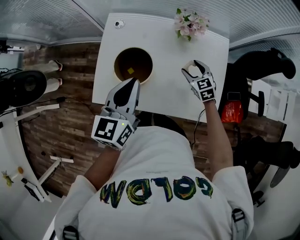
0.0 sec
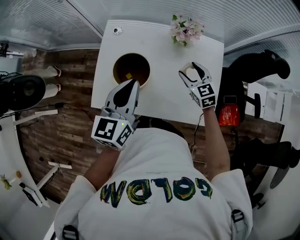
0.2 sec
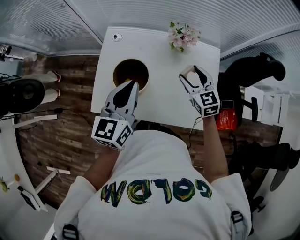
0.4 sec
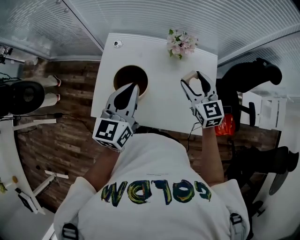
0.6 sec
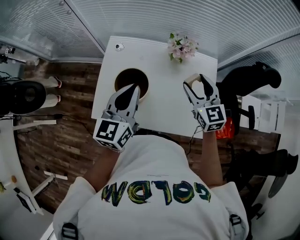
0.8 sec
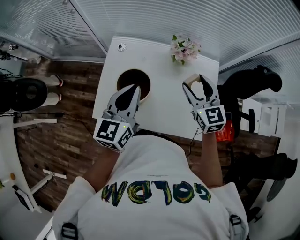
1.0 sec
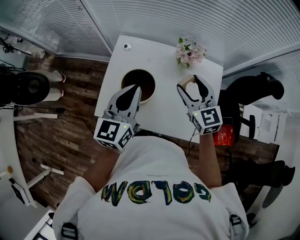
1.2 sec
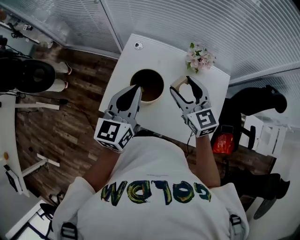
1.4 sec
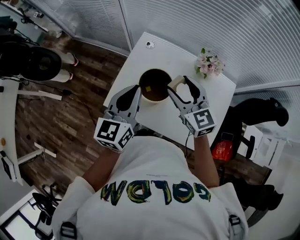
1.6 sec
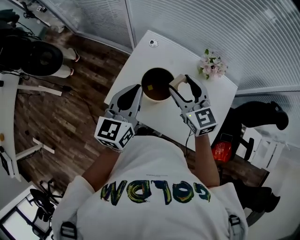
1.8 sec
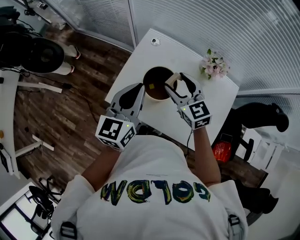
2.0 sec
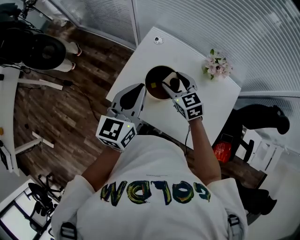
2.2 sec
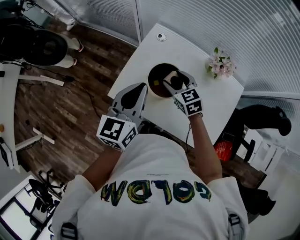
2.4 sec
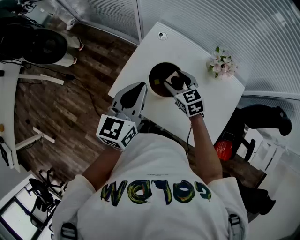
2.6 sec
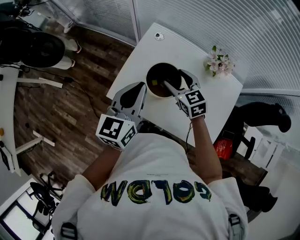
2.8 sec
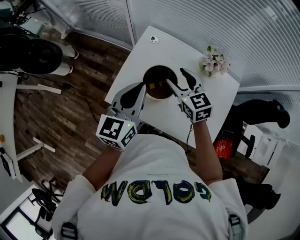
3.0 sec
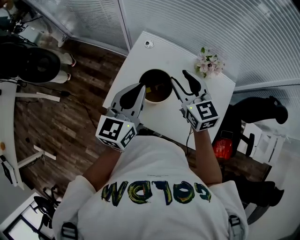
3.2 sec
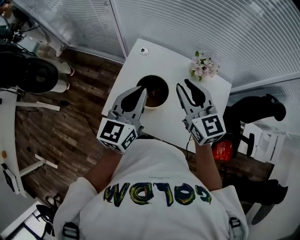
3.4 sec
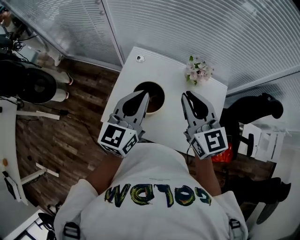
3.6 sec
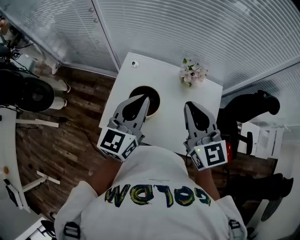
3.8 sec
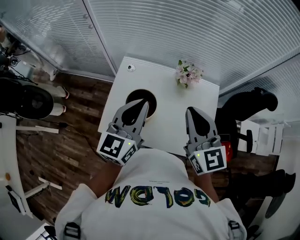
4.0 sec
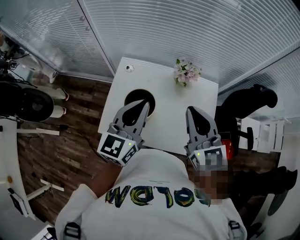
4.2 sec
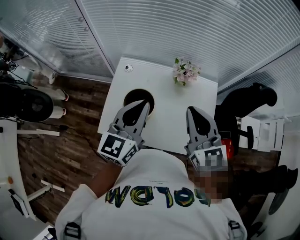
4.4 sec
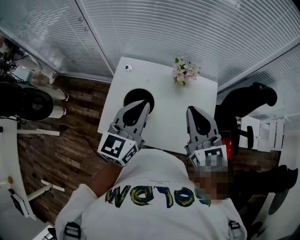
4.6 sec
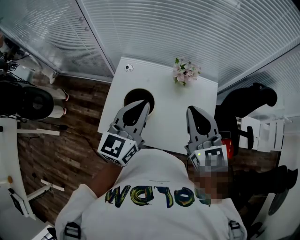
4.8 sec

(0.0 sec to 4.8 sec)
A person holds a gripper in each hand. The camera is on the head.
0.0 sec - 1.6 sec: The right gripper moves upward and to the left, about 30 cm, and rotates some 30 degrees; the left gripper shifts some 10 cm to the left and upward.
1.6 sec - 3.2 sec: The right gripper reaches approximately 15 cm downward, then returns.
3.2 sec - 4.8 sec: The left gripper is displaced to the right and upward by roughly 10 cm. Meanwhile the right gripper is displaced to the right, upward and backward by roughly 20 cm, turns by about 20 degrees, and closes up.

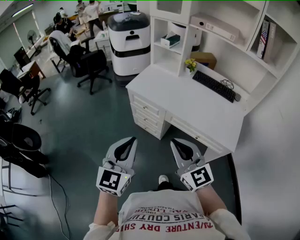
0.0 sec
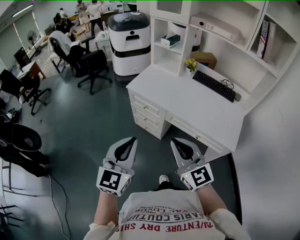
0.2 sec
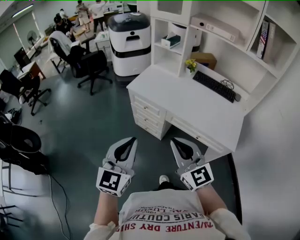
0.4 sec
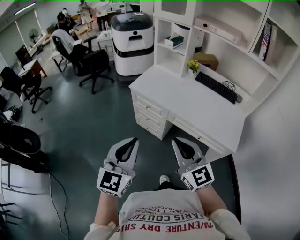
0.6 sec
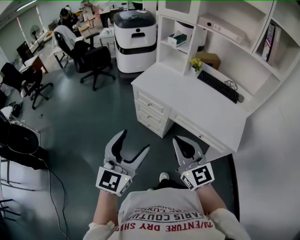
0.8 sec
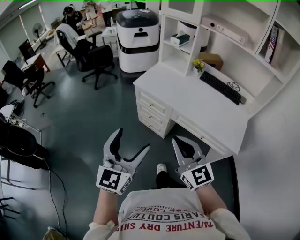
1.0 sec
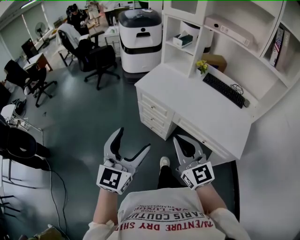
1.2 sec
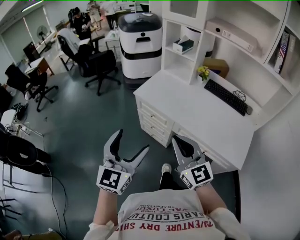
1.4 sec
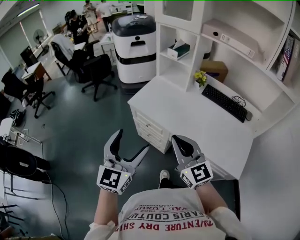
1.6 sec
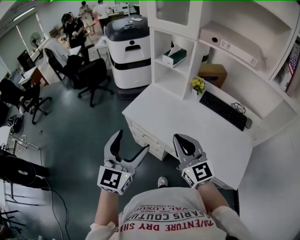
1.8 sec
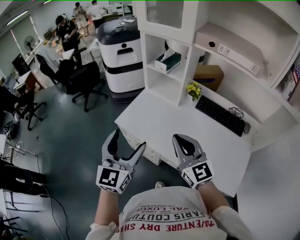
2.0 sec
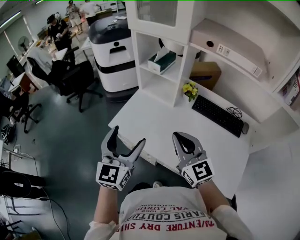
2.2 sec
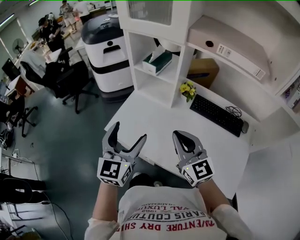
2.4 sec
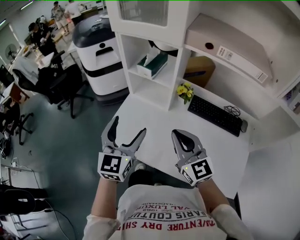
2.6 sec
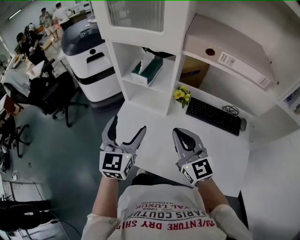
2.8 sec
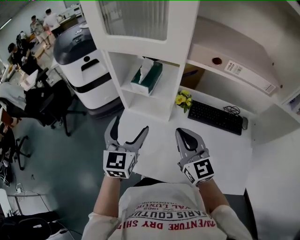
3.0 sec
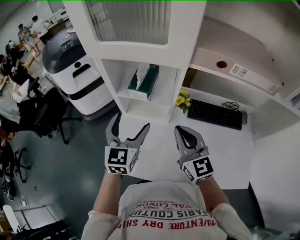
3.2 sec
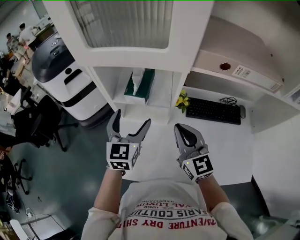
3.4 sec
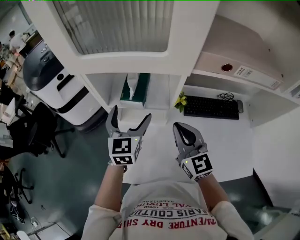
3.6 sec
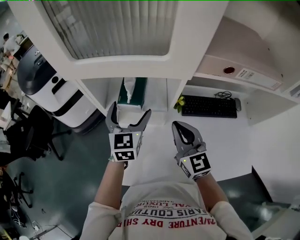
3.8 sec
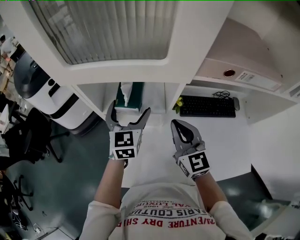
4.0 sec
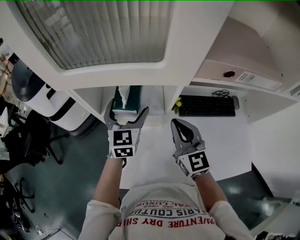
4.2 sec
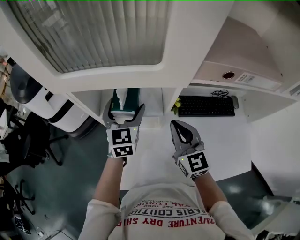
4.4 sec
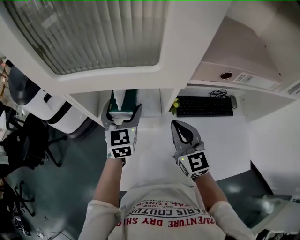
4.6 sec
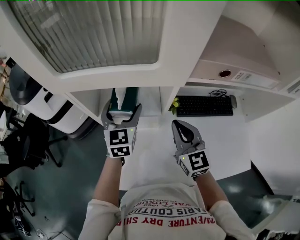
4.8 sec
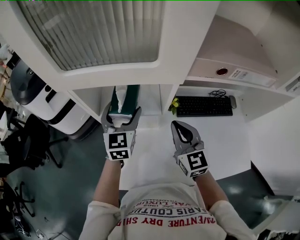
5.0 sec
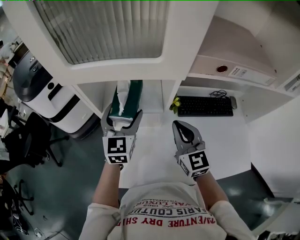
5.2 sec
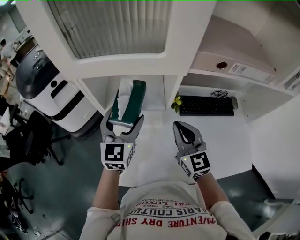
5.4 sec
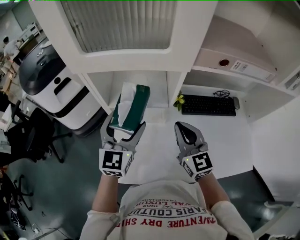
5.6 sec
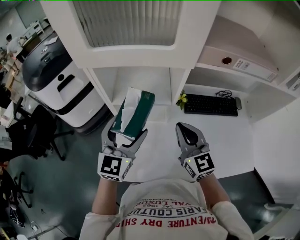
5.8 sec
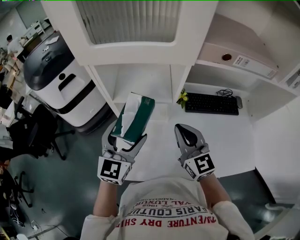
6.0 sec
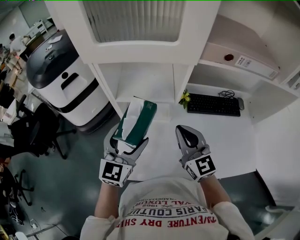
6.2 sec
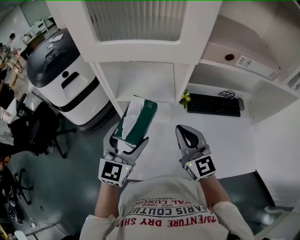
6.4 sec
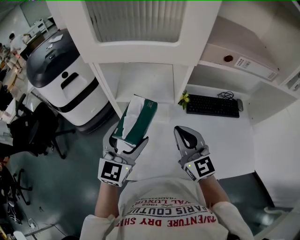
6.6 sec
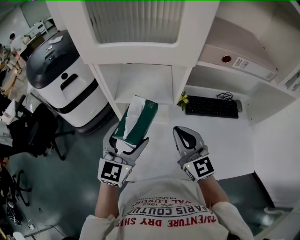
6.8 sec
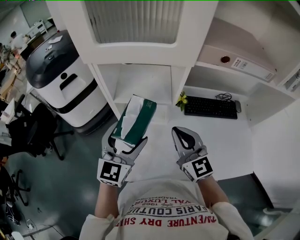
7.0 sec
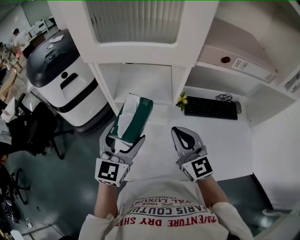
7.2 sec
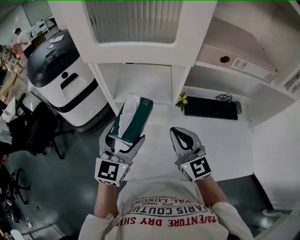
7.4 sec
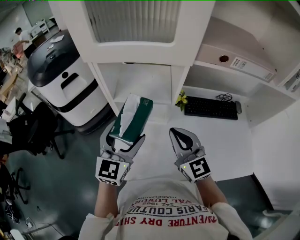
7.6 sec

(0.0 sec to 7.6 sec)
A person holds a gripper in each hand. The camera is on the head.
0.0 sec - 1.6 sec: Both grippers move forward, about 15 cm. The left gripper opens up.
1.6 sec - 3.0 sec: Both grippers travel together forward, approximately 40 cm. The right gripper swivels about 20 degrees.
3.0 sec - 4.6 sec: The right gripper is displaced forward by about 10 cm, and swivels roughly 20 degrees. The left gripper is displaced forward by some 20 cm.
4.6 sec - 6.0 sec: The left gripper shifts about 15 cm backward, while the right gripper goes about 10 cm backward.
6.0 sec - 7.6 sec: There are only small adjustments of the grippers.

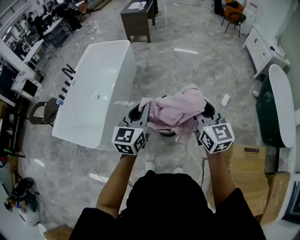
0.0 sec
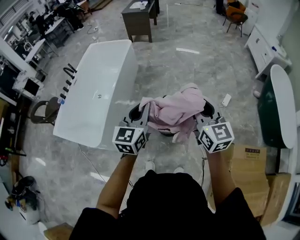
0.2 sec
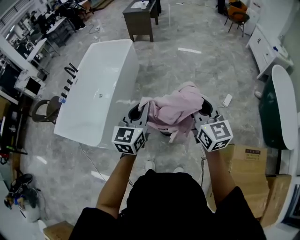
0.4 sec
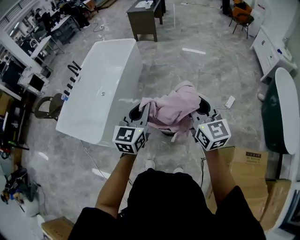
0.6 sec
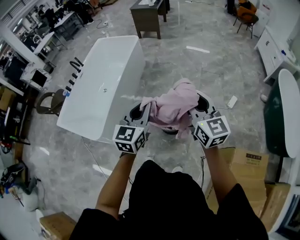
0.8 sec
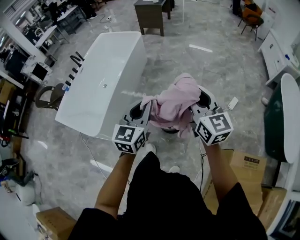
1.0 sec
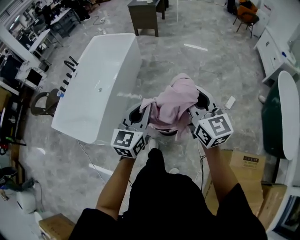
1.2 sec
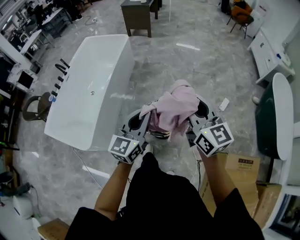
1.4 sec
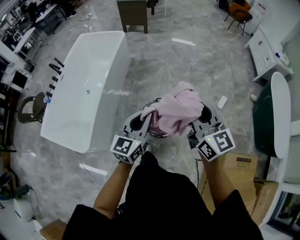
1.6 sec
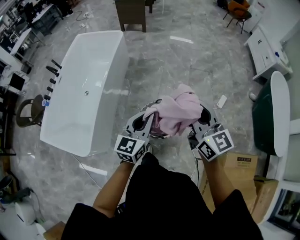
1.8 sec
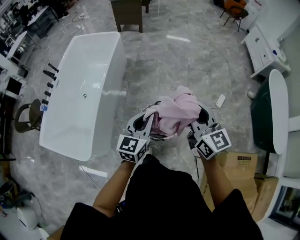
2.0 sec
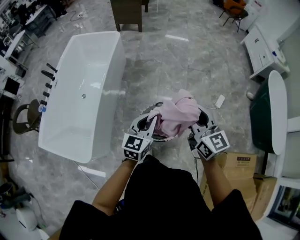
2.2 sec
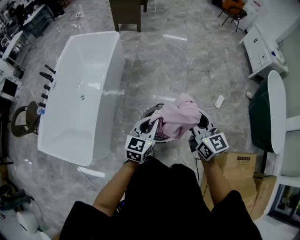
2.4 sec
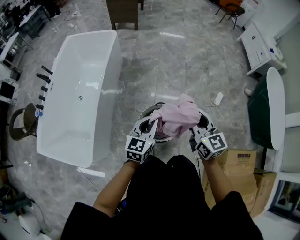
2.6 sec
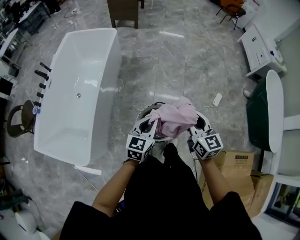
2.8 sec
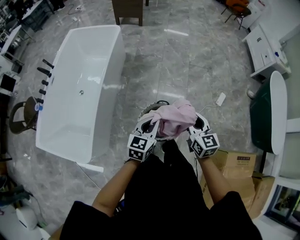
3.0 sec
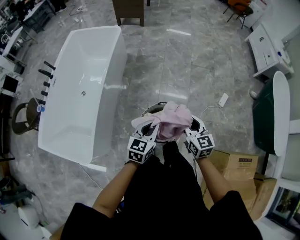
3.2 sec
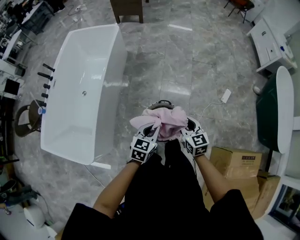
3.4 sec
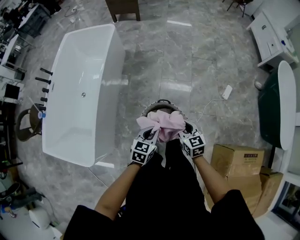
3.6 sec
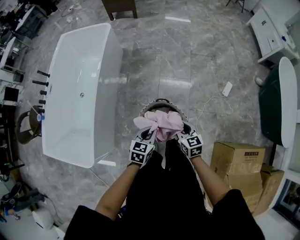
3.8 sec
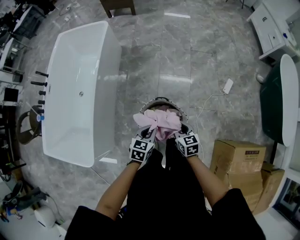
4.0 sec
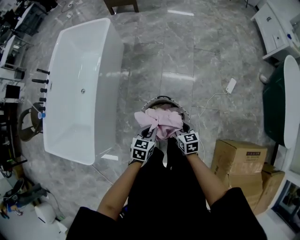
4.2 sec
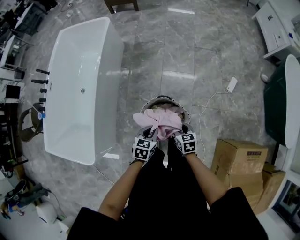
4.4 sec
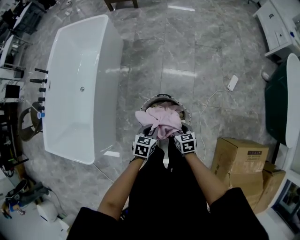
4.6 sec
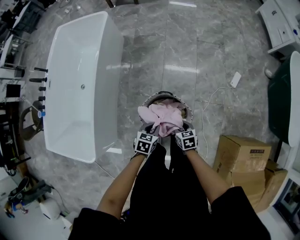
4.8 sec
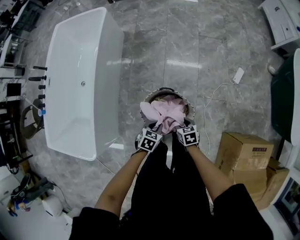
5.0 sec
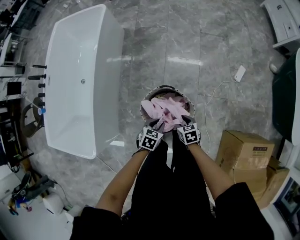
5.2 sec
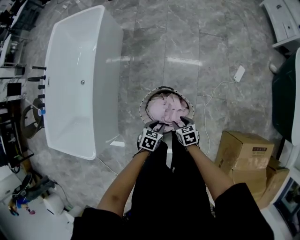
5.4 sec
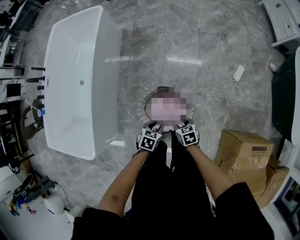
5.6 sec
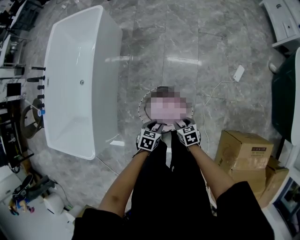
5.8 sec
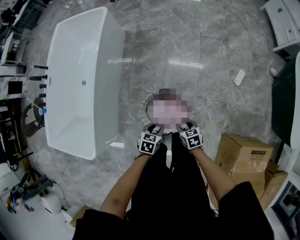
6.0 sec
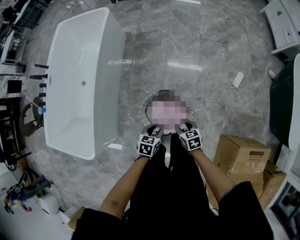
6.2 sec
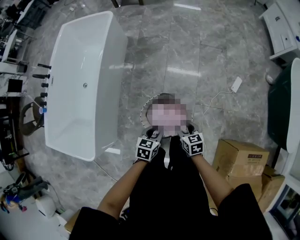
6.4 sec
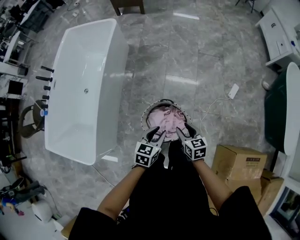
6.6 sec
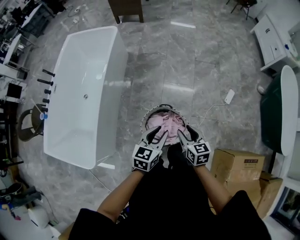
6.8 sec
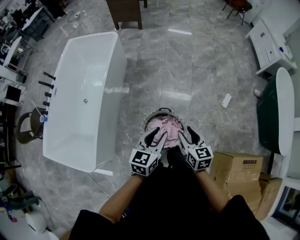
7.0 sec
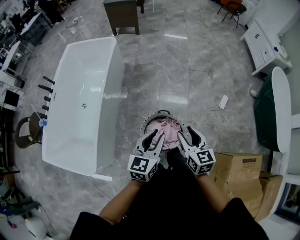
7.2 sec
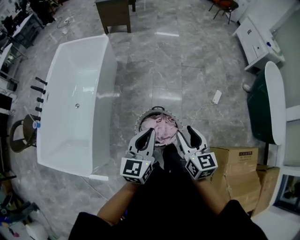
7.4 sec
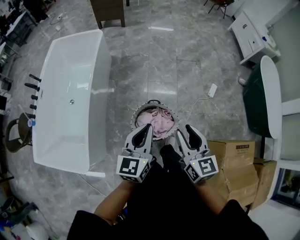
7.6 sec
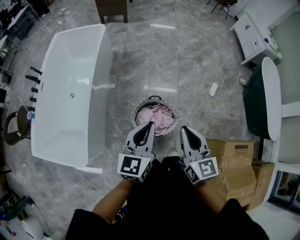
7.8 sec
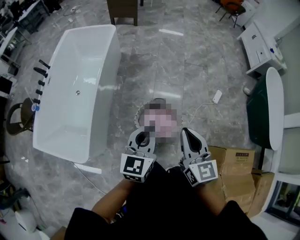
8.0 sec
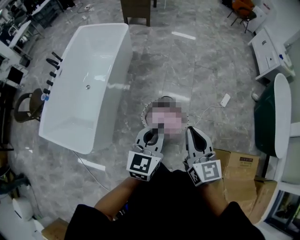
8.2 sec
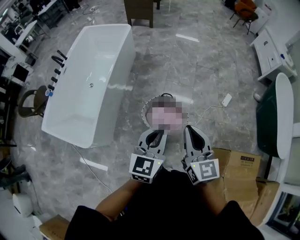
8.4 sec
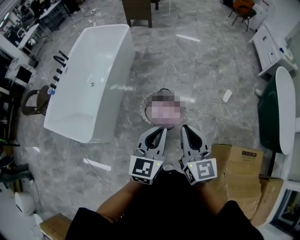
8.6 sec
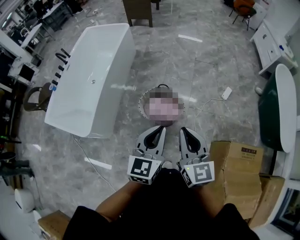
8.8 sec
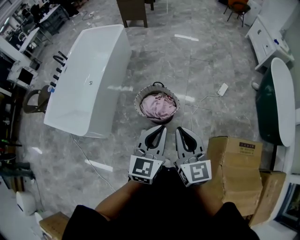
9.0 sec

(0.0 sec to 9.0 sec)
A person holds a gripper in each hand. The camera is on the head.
0.0 sec - 1.6 sec: The right gripper travels forward by approximately 15 cm. Meanwhile the left gripper goes about 15 cm forward and downward.
1.6 sec - 3.0 sec: The two grippers go approximately 20 cm downward and forward. The right gripper changes its angle by some 20 degrees.
3.0 sec - 4.4 sec: Both grippers move downward, roughly 20 cm. The left gripper changes its angle by about 30 degrees; the right gripper swivels roughly 30 degrees.
4.4 sec - 6.0 sec: Both grippers travel together downward, approximately 10 cm. The left gripper opens its fingers.
6.0 sec - 7.6 sec: Both grippers move upward, some 40 cm. The left gripper angles its fingers upward, by approximately 40 degrees, and closes, while the right gripper tips its fingers upward by roughly 40 degrees.
7.6 sec - 9.0 sec: The two grippers go some 35 cm backward and to the right. The right gripper closes.

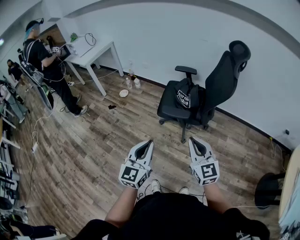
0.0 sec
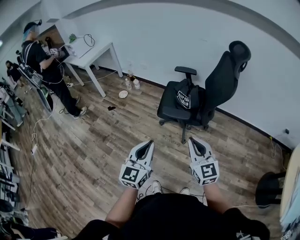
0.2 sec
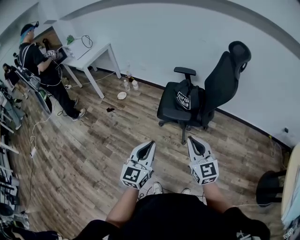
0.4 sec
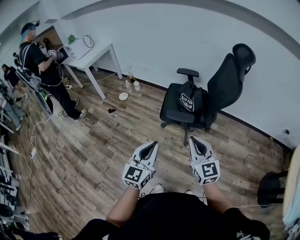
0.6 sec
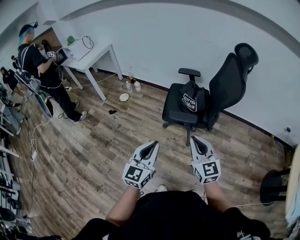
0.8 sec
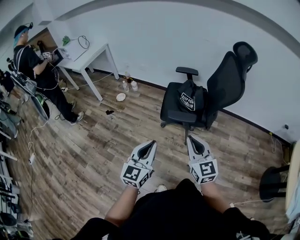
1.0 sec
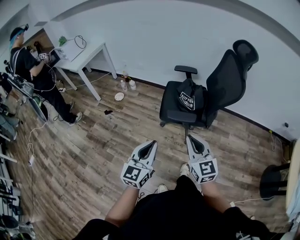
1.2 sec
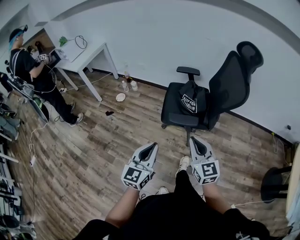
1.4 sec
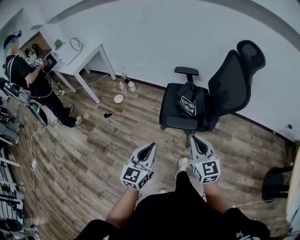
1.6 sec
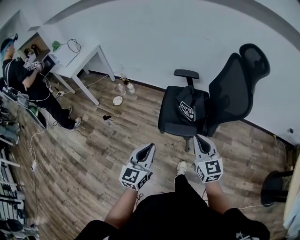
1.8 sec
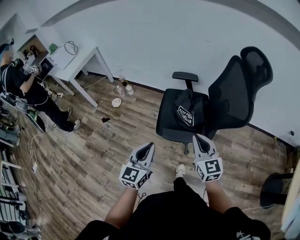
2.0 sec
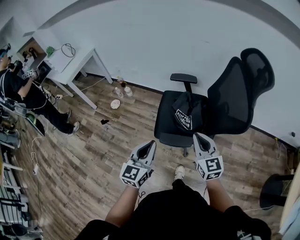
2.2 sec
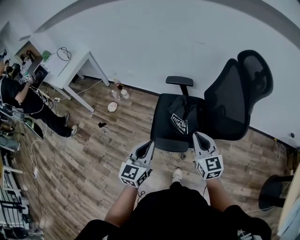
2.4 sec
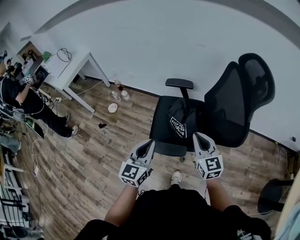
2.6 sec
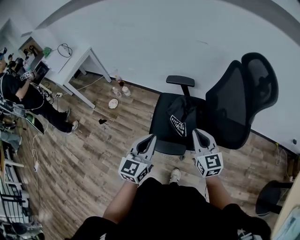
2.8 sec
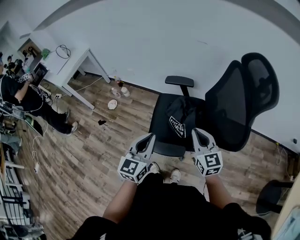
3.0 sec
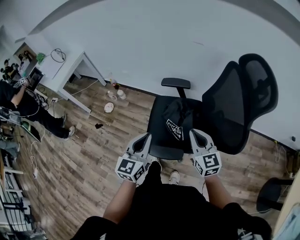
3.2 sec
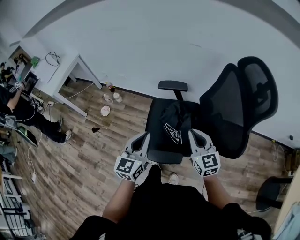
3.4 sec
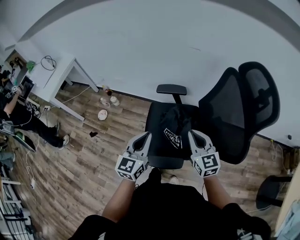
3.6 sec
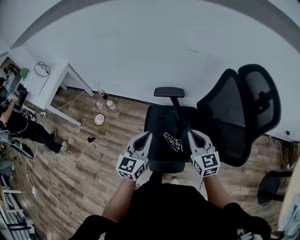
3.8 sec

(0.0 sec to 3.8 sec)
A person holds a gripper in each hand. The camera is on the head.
0.0 sec - 1.2 sec: The right gripper moves to the left and forward, approximately 10 cm. Meanwhile the left gripper heads forward and to the left, covering about 10 cm.
1.2 sec - 2.6 sec: The right gripper travels forward and to the right by about 35 cm. Meanwhile the left gripper goes about 30 cm forward.
2.6 sec - 3.8 sec: The grippers both shift forward by some 15 cm.
